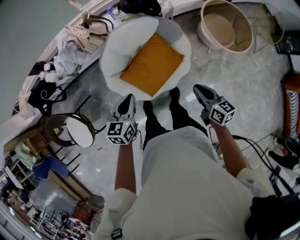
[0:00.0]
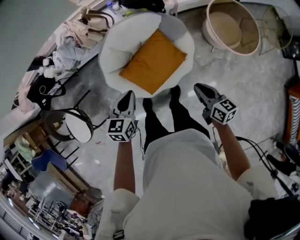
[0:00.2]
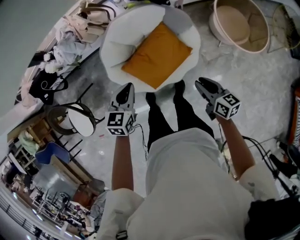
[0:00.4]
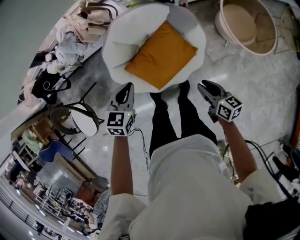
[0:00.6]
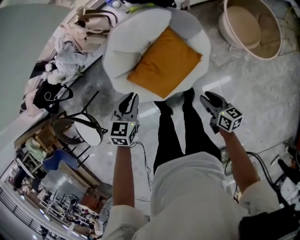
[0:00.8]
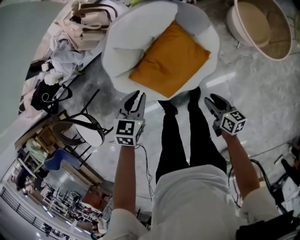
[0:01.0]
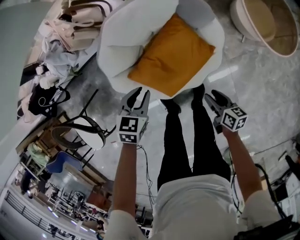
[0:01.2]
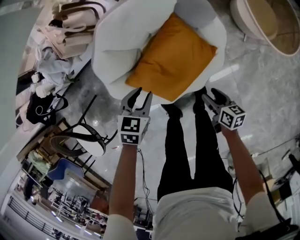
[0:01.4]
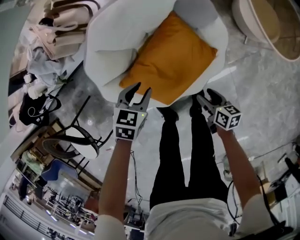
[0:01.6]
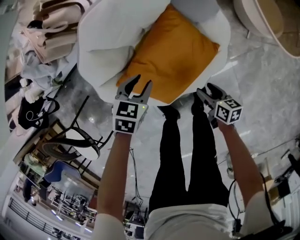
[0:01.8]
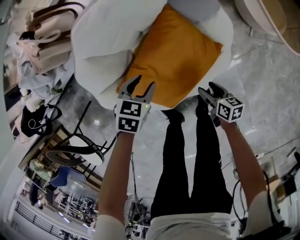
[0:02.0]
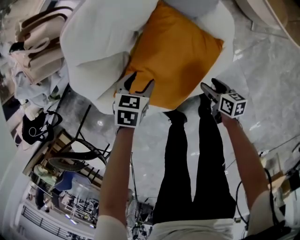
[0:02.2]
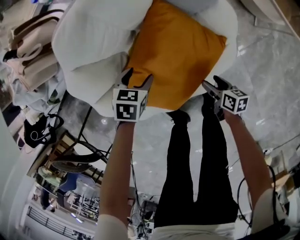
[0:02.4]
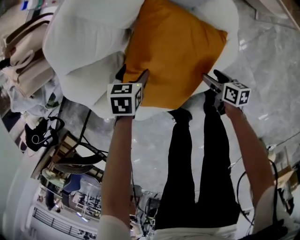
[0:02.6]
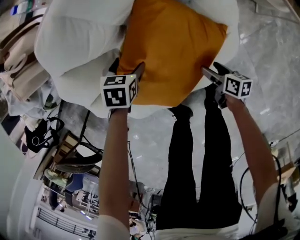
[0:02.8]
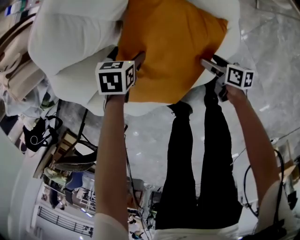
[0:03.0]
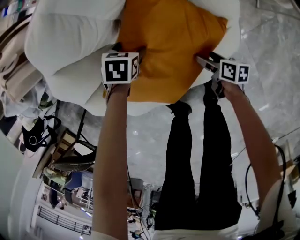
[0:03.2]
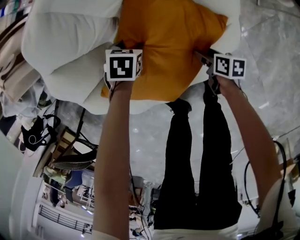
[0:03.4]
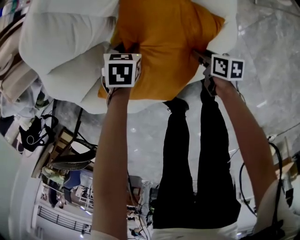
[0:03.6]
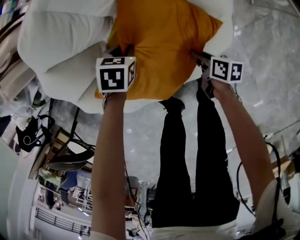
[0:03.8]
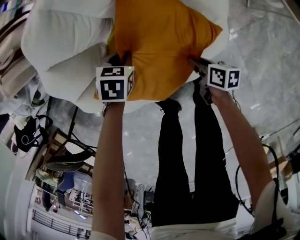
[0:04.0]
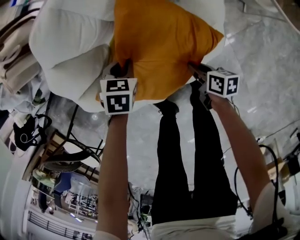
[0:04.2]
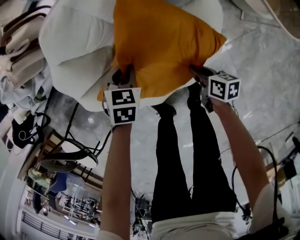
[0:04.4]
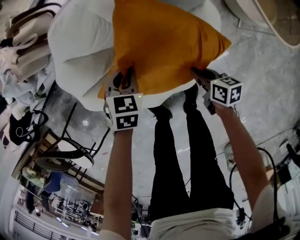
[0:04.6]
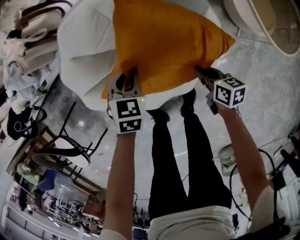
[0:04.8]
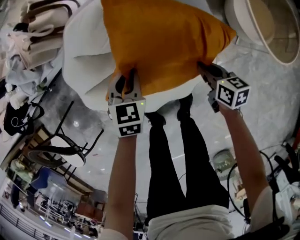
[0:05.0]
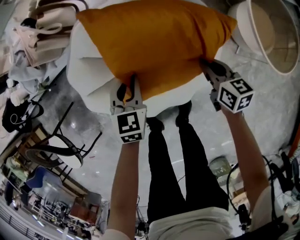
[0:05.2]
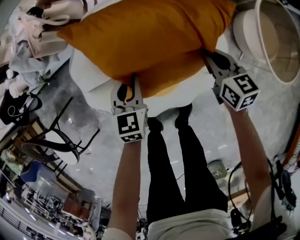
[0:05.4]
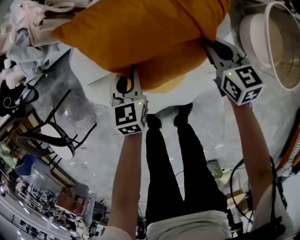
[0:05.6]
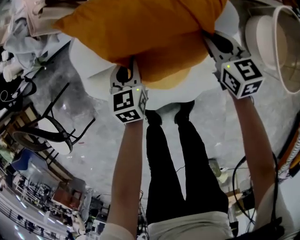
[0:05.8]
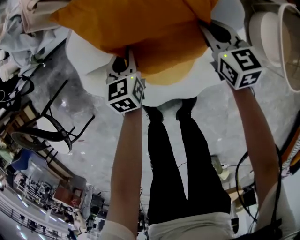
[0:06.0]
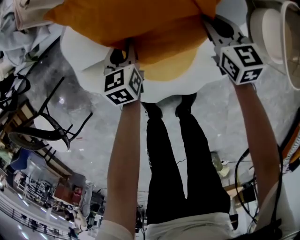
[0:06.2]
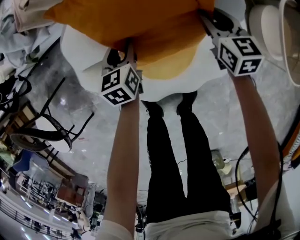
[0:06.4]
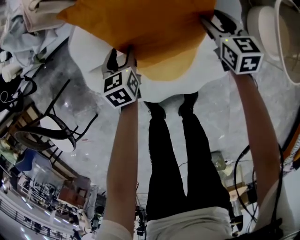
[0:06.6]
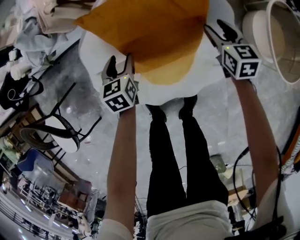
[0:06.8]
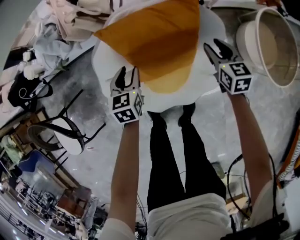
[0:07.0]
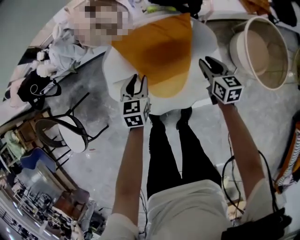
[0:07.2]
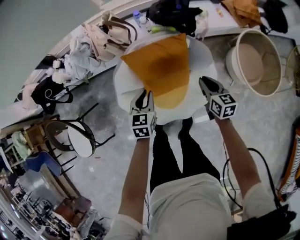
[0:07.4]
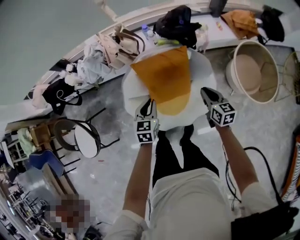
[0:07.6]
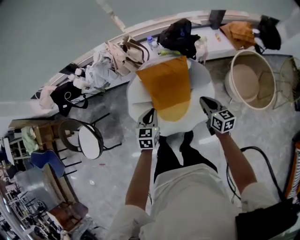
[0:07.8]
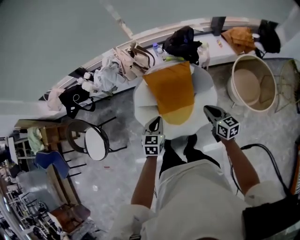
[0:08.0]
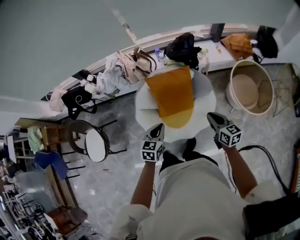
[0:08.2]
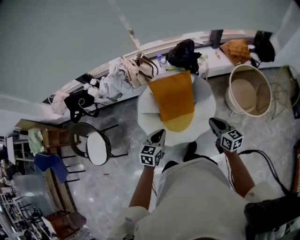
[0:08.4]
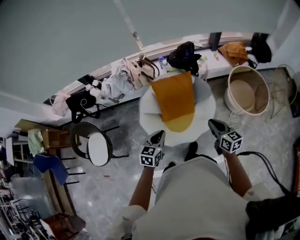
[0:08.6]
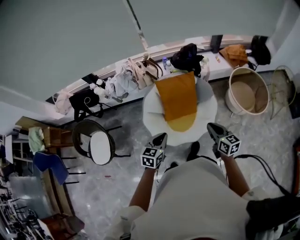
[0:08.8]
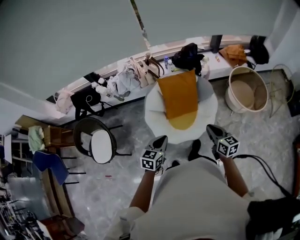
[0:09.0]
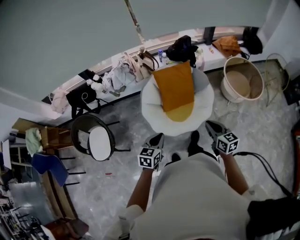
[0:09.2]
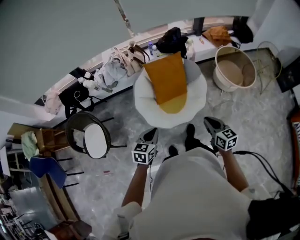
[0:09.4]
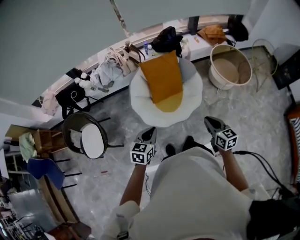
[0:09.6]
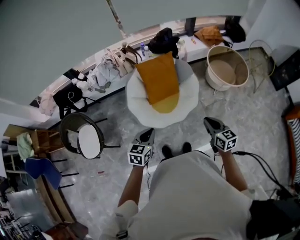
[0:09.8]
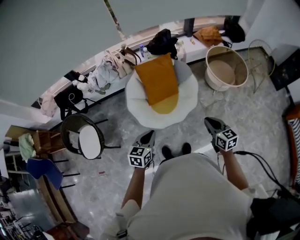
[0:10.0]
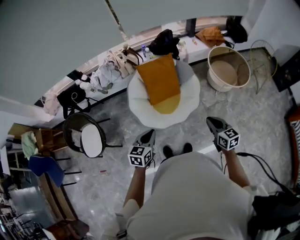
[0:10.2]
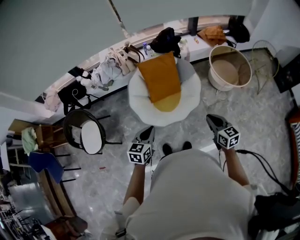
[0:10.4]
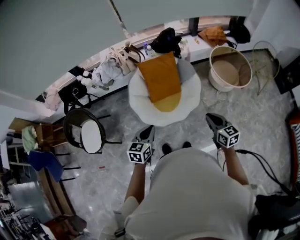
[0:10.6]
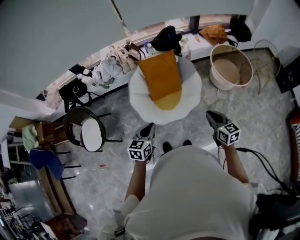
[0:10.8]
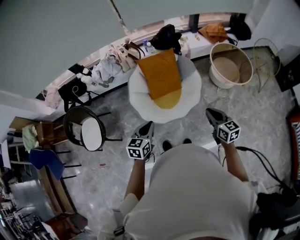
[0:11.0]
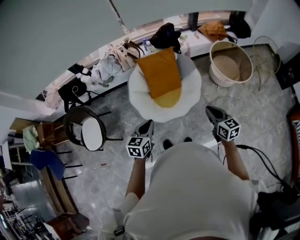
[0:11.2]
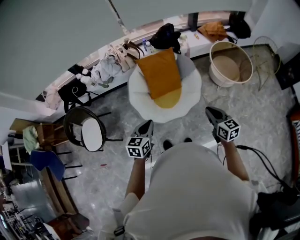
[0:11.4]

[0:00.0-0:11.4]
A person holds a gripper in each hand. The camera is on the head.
0:00.0 to 0:01.4: Both grippers travel together downward, some 35 cm. The left gripper rotates some 30 degrees, and opens its fingers. Meanwhile the right gripper swivels about 20 degrees, and opens up.
0:01.4 to 0:02.8: The two grippers go roughly 25 cm downward. The left gripper opens its fingers.
0:02.8 to 0:04.2: The right gripper heads upward, covering roughly 5 cm, and closes its fingers. Meanwhile the left gripper ends up about 5 cm from where it was, and closes up.
0:04.2 to 0:05.6: The left gripper heads upward, forward and to the left, covering some 15 cm, and tilts its fingers approximately 30 degrees upward; the right gripper shifts about 35 cm forward and upward, and twists roughly 60 degrees counterclockwise, seen from behind.
0:05.6 to 0:07.2: The two grippers go about 15 cm upward.
0:07.2 to 0:08.6: The two grippers go approximately 40 cm upward and backward.
0:08.6 to 0:10.0: Both grippers move backward, about 20 cm.
0:10.0 to 0:11.4: The grippers make only small movements.

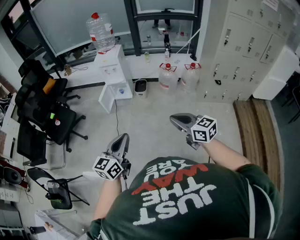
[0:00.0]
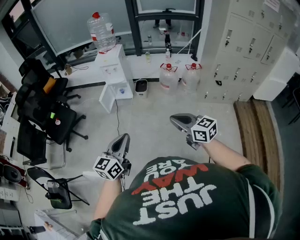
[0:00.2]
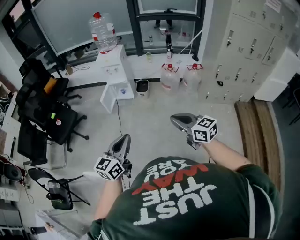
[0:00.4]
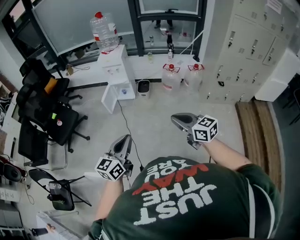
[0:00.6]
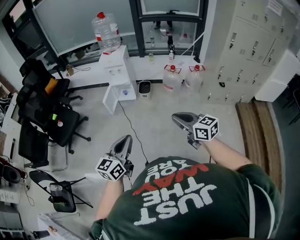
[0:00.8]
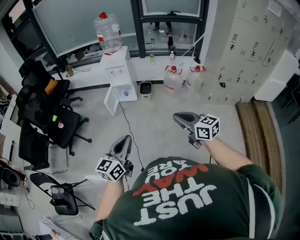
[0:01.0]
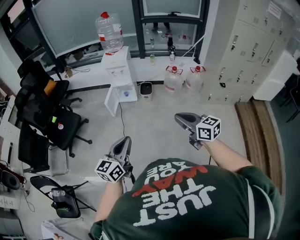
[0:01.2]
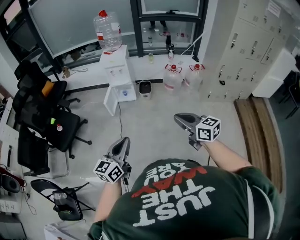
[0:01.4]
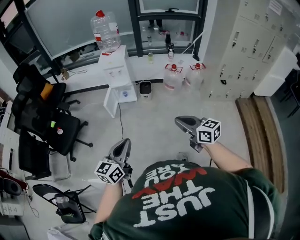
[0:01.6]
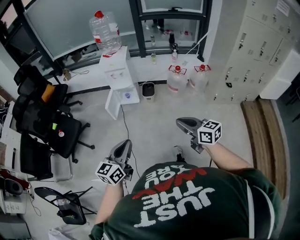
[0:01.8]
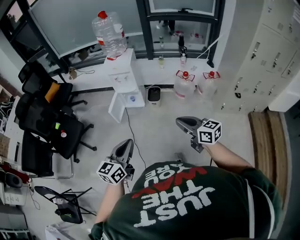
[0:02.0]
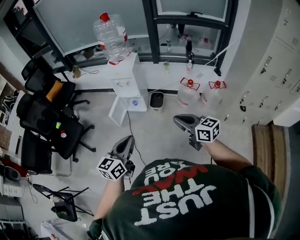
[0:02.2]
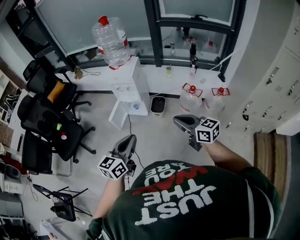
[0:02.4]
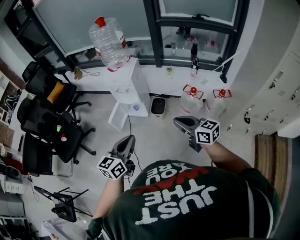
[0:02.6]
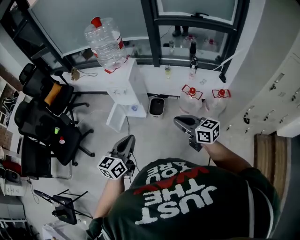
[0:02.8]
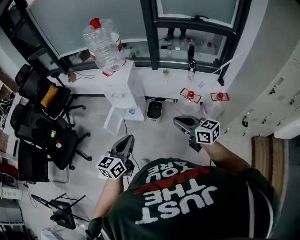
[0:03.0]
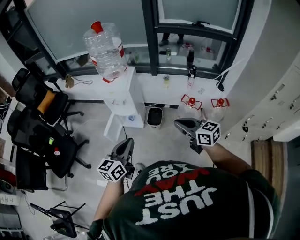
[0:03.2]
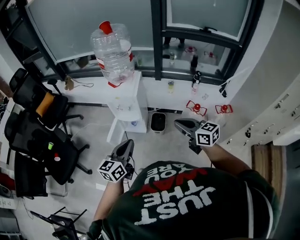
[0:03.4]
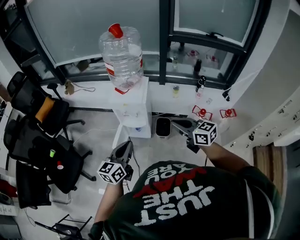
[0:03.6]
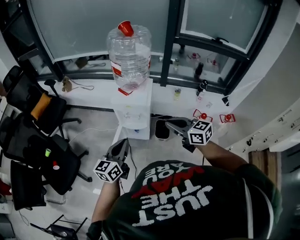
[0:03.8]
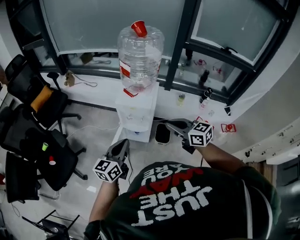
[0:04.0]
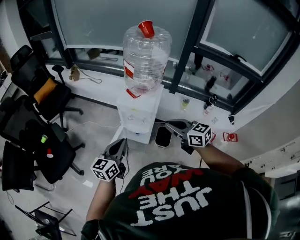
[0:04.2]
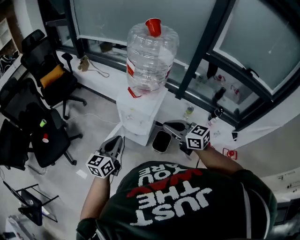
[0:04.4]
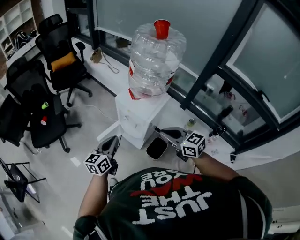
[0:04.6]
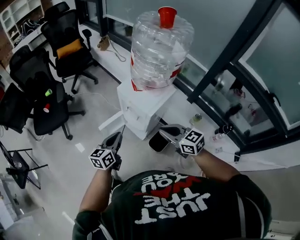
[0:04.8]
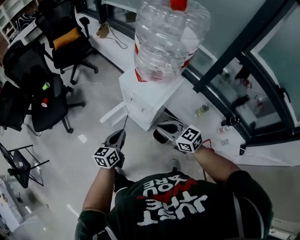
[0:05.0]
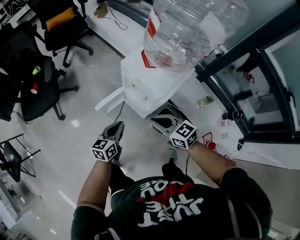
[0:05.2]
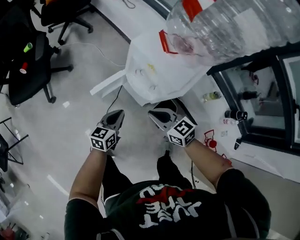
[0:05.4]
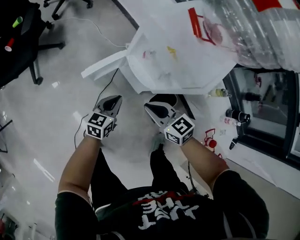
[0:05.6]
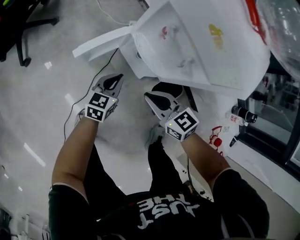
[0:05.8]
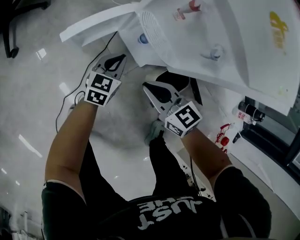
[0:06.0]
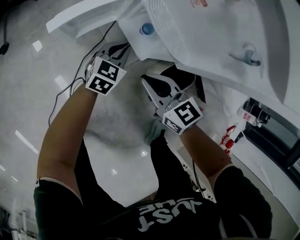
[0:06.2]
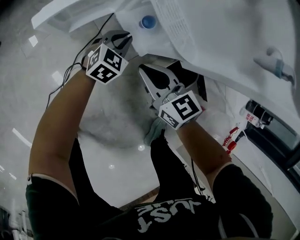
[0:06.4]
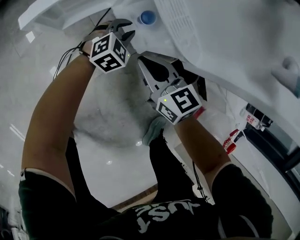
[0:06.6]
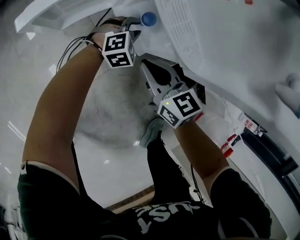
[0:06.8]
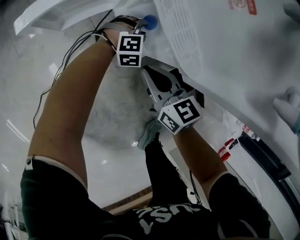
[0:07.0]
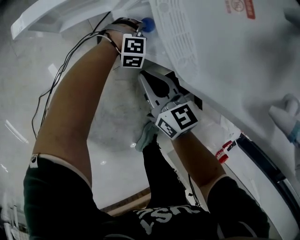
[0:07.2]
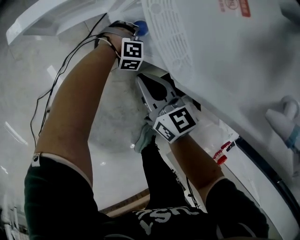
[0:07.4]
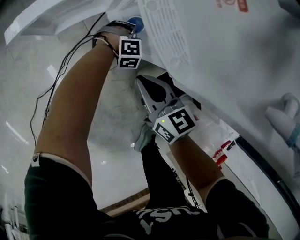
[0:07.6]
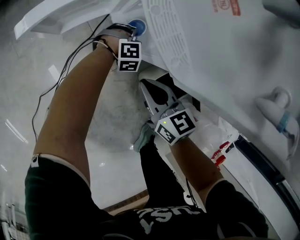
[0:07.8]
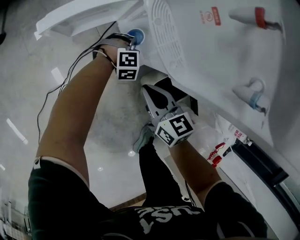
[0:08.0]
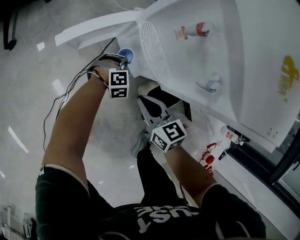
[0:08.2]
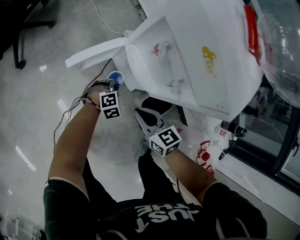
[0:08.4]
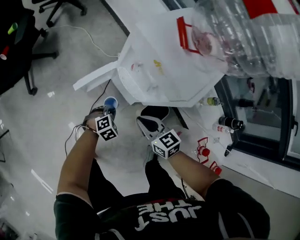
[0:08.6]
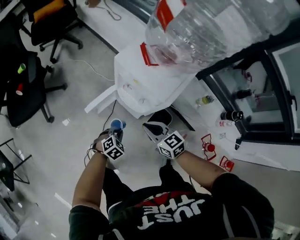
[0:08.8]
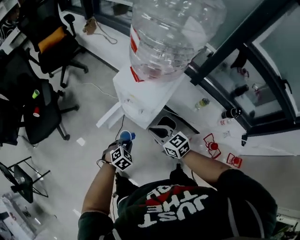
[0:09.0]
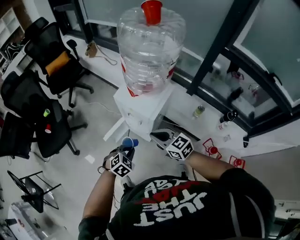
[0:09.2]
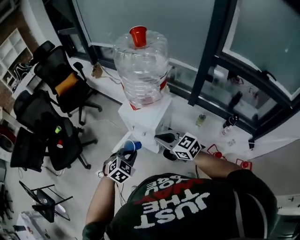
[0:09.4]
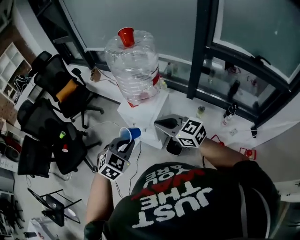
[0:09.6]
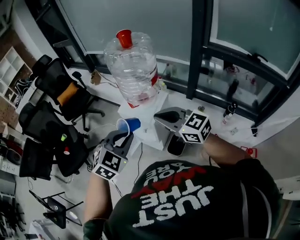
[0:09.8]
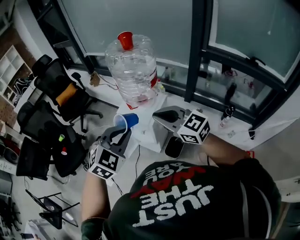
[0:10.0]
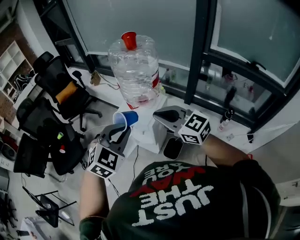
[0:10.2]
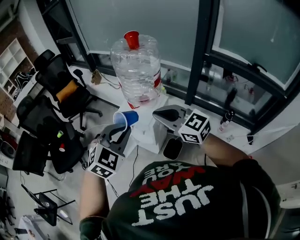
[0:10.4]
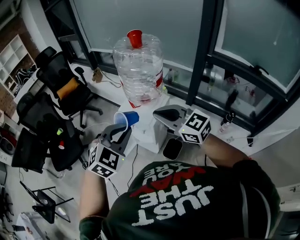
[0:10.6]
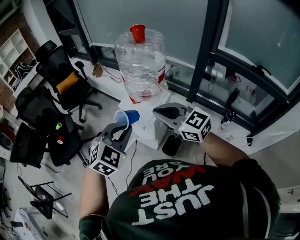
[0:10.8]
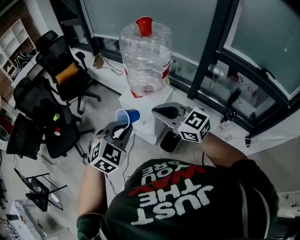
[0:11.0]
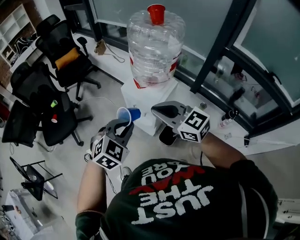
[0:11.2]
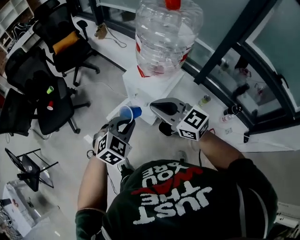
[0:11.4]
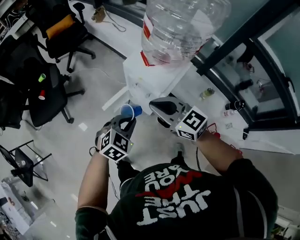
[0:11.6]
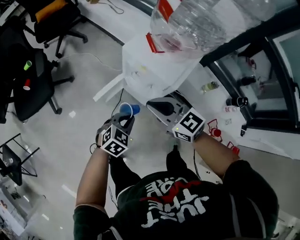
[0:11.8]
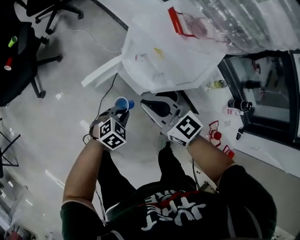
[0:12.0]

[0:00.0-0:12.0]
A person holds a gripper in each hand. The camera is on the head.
0:00.0 to 0:01.6: Both grippers travel together to the left and forward, approximately 15 cm.
0:01.6 to 0:03.0: Both grippers are carried forward and to the right, approximately 50 cm.
0:03.0 to 0:04.4: Both grippers move forward and to the left, about 40 cm. The right gripper changes its angle by about 20 degrees.
0:04.4 to 0:06.0: The grippers both shift downward by roughly 60 cm. The right gripper changes its angle by approximately 20 degrees. The left gripper rotates about 20 degrees.
0:06.0 to 0:07.6: The left gripper moves downward and to the right, some 30 cm, rotates around the line of its fingers by about 60 degrees, clockwise from behind, and opens and closes again. The right gripper travels downward and to the right by approximately 15 cm.
0:07.6 to 0:09.0: Both grippers move upward, some 50 cm. The left gripper swivels approximately 20 degrees.
0:09.0 to 0:10.4: Both grippers travel together upward, about 40 cm. The left gripper points its fingers roughly 30 degrees further upward. The right gripper turns by about 30 degrees.
0:10.4 to 0:12.0: The grippers both shift downward by some 50 cm. The right gripper rotates approximately 20 degrees, while the left gripper swivels approximately 40 degrees.
